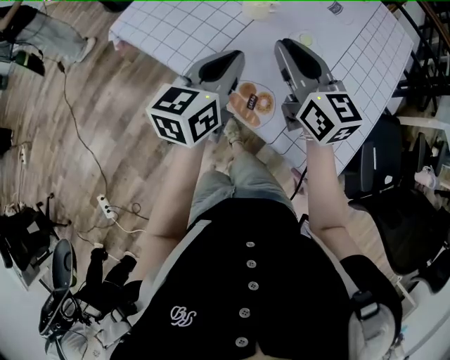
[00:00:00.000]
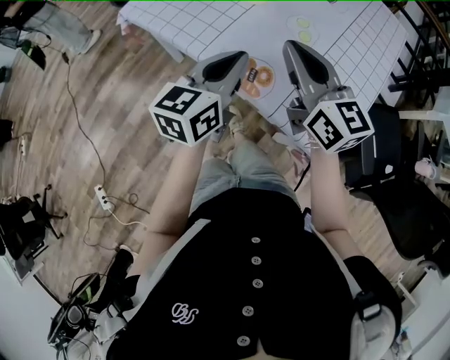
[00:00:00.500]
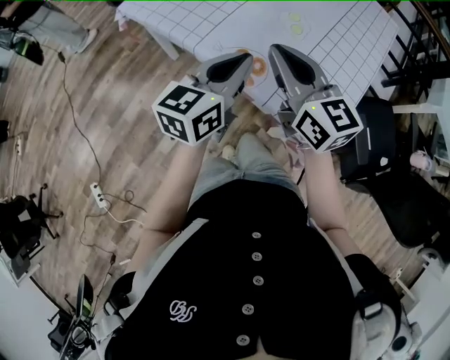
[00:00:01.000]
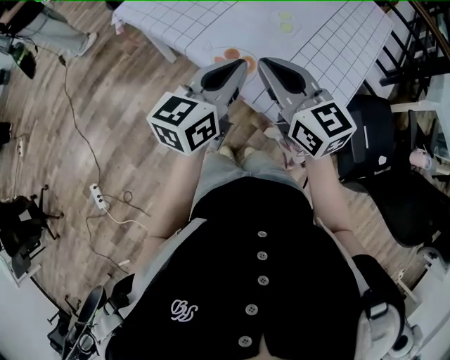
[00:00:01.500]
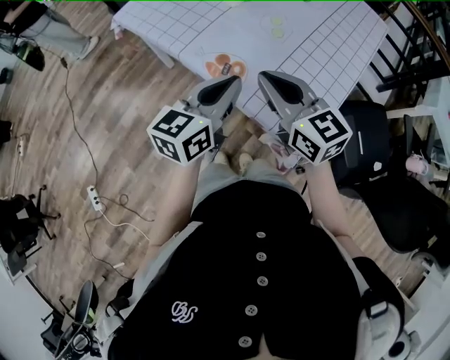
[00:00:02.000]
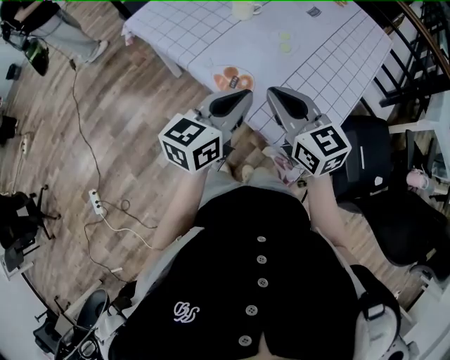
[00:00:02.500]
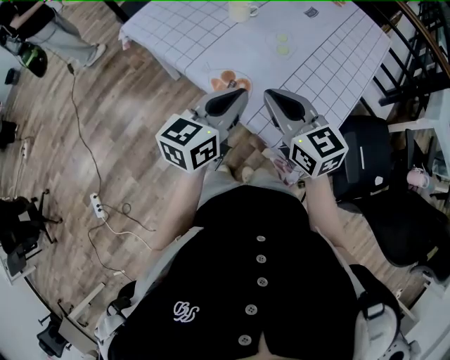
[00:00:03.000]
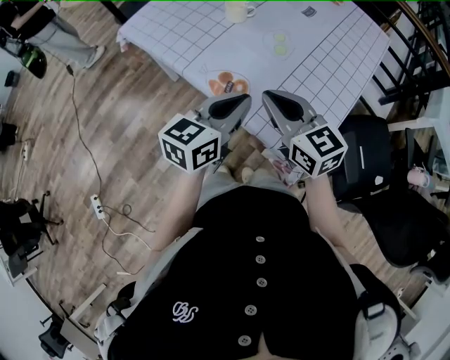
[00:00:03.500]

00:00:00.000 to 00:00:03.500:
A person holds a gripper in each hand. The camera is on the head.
00:00:00.000 to 00:00:02.000: The right gripper travels backward by about 20 cm. The left gripper is displaced backward and to the right by approximately 20 cm.
00:00:02.000 to 00:00:03.500: There are only small adjustments of the grippers.

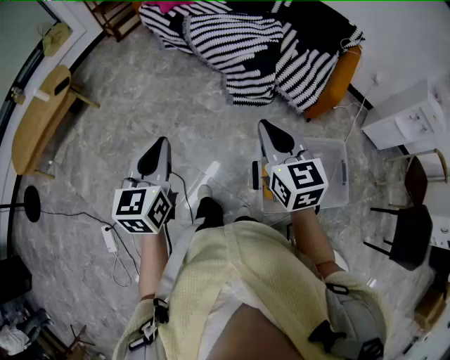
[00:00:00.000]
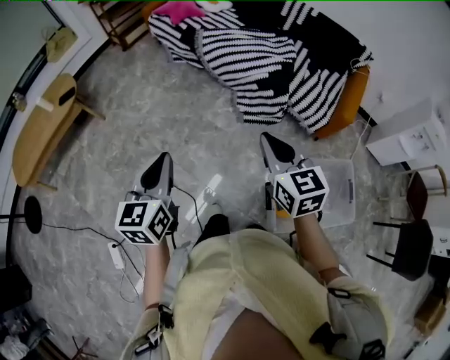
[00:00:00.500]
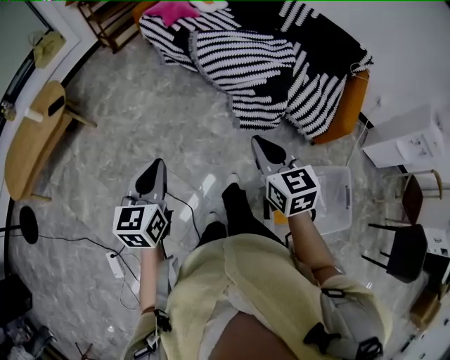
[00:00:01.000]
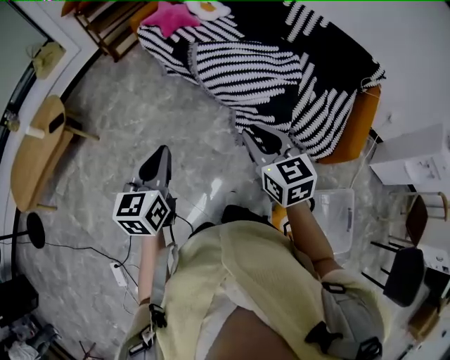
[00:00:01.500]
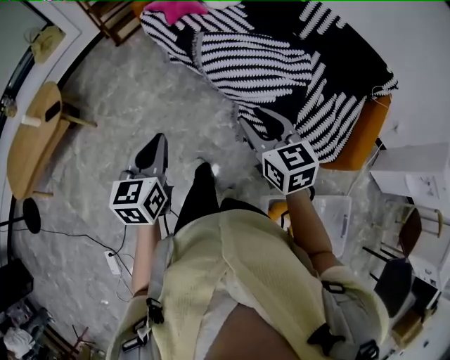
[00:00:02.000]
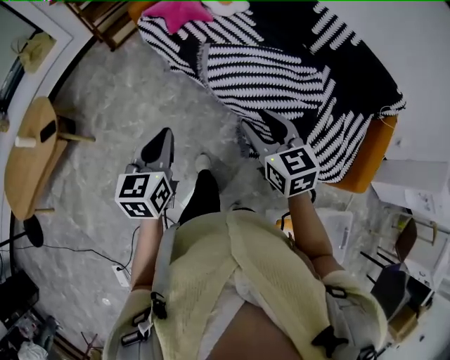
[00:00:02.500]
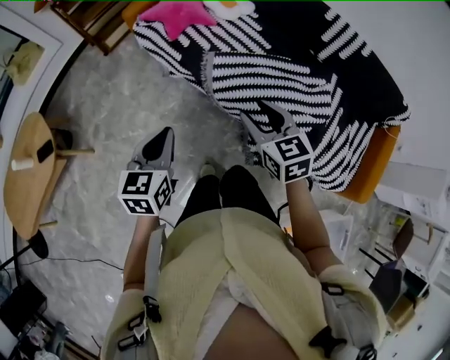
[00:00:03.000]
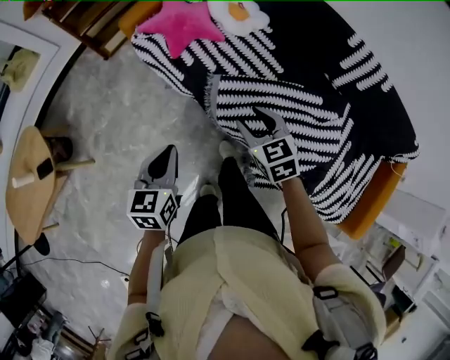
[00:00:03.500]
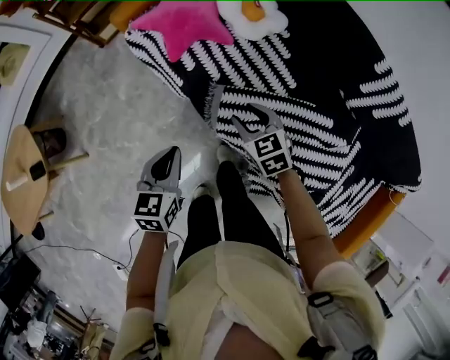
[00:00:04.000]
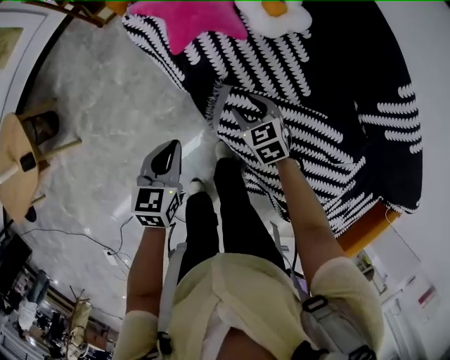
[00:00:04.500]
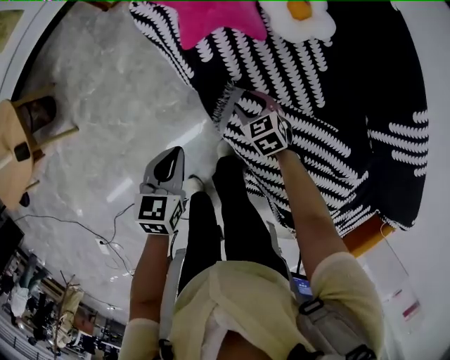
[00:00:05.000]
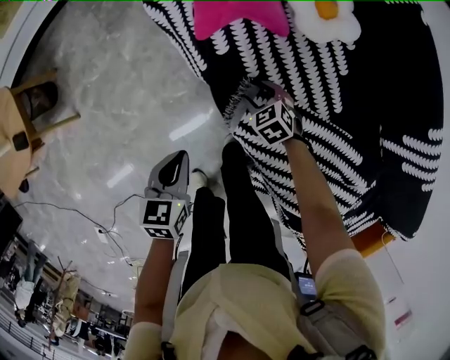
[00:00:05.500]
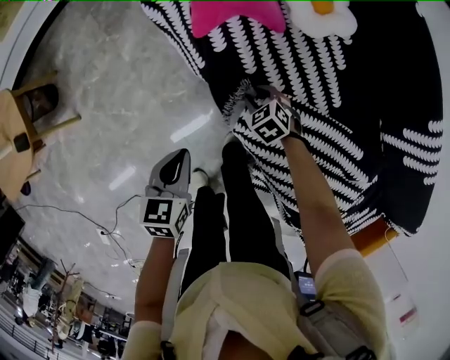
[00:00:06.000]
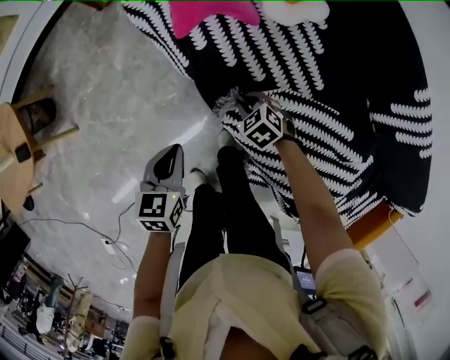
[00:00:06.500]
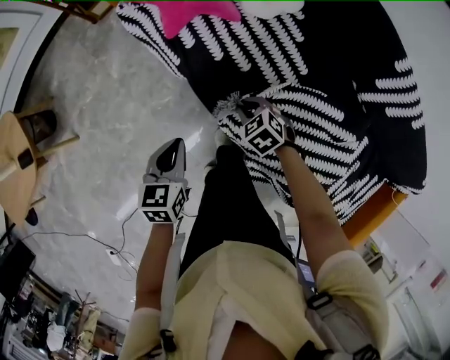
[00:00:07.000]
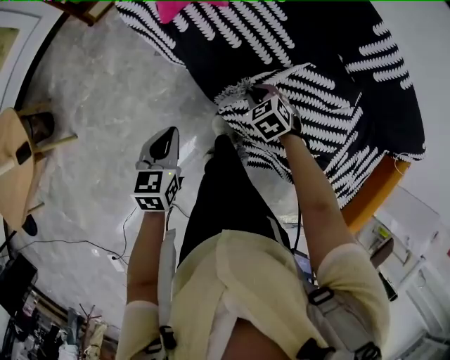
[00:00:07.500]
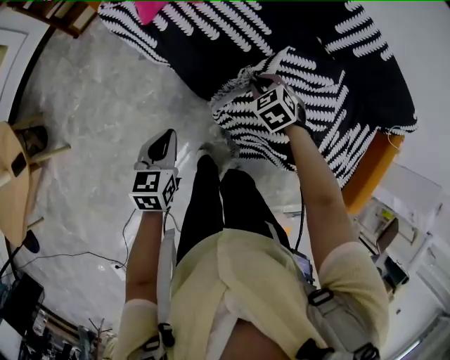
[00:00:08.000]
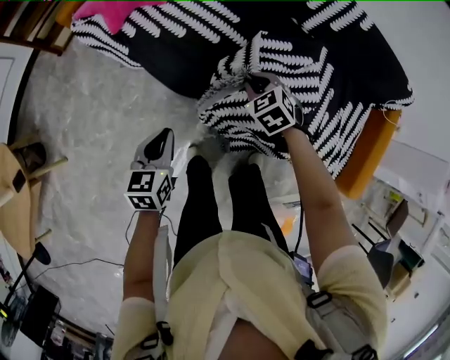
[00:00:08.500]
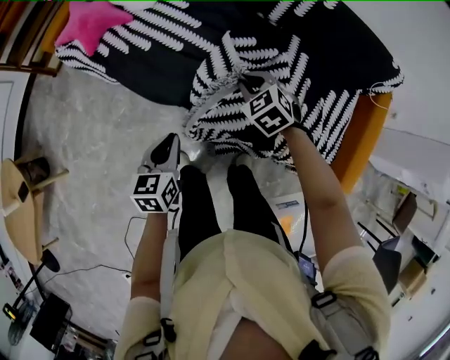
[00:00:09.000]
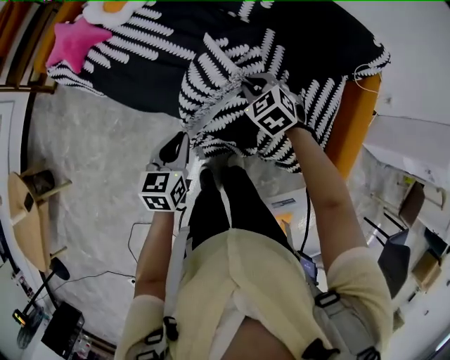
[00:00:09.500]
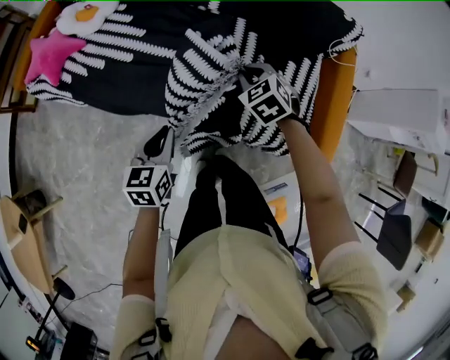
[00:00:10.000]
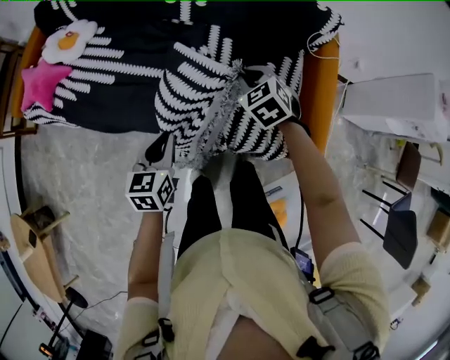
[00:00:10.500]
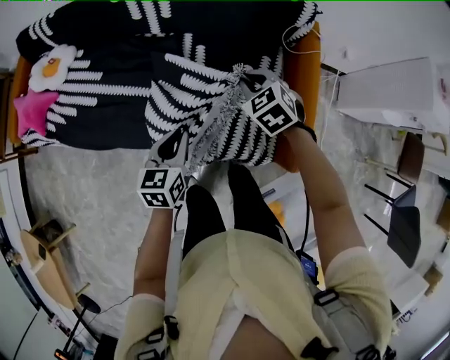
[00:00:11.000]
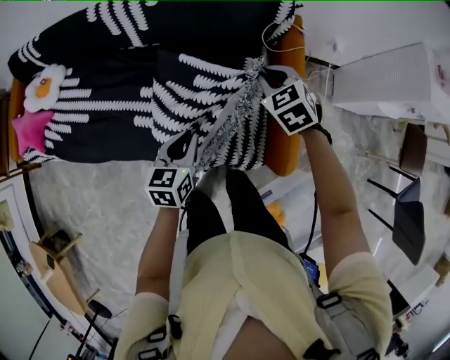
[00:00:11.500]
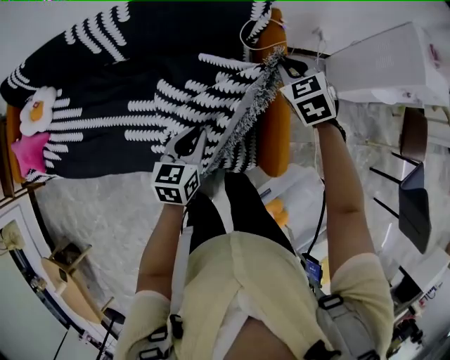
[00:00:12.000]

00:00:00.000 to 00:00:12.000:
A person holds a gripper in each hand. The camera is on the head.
00:00:00.000 to 00:00:02.000: Both grippers travel together forward, approximately 40 cm. The right gripper opens up.
00:00:02.000 to 00:00:04.000: Both grippers are carried forward, some 50 cm. The right gripper goes some 25 cm downward, and changes its angle by about 30 degrees.
00:00:04.000 to 00:00:06.000: The left gripper travels downward by roughly 15 cm. The right gripper heads downward, covering some 25 cm, and rotates some 30 degrees.
00:00:06.000 to 00:00:08.000: The right gripper changes place by some 30 cm, swivels some 20 degrees, and closes, while the left gripper moves approximately 20 cm, and rotates approximately 20 degrees.
00:00:08.000 to 00:00:10.000: The grippers both shift to the right by roughly 35 cm. The left gripper turns by roughly 20 degrees. The right gripper swivels some 20 degrees.
00:00:10.000 to 00:00:12.000: Both grippers are carried to the right, about 50 cm. The left gripper swivels some 20 degrees. The right gripper swivels approximately 30 degrees.

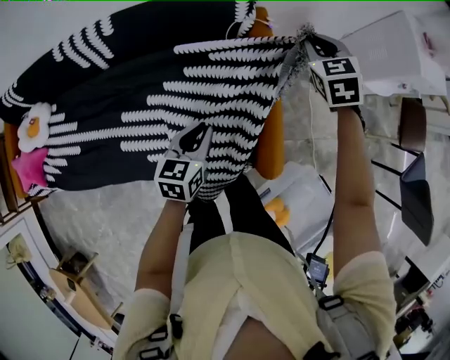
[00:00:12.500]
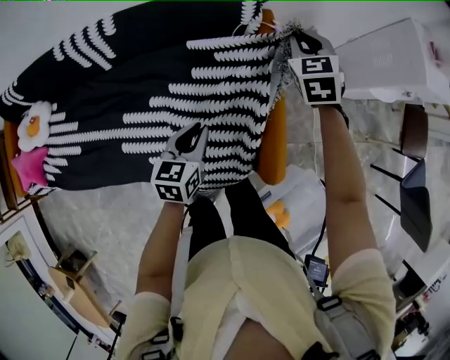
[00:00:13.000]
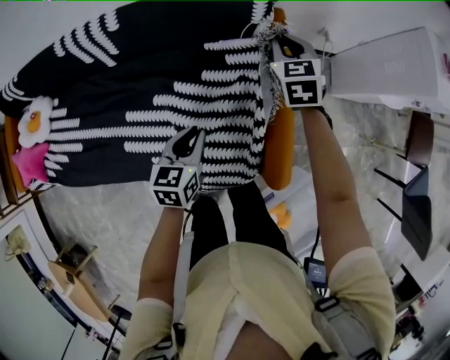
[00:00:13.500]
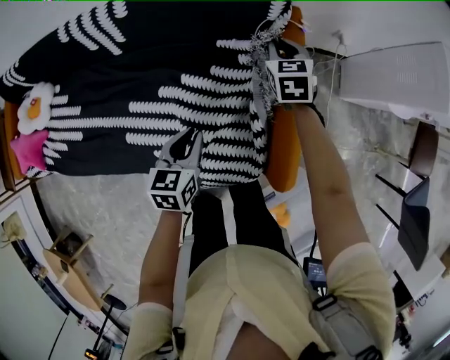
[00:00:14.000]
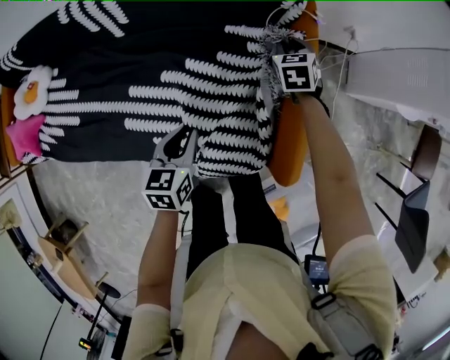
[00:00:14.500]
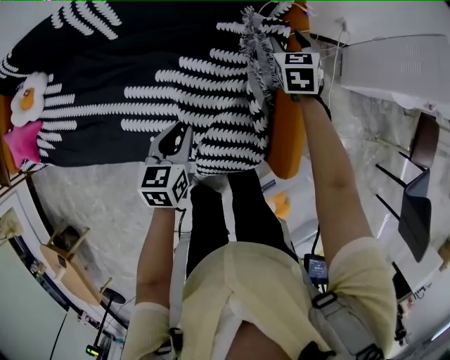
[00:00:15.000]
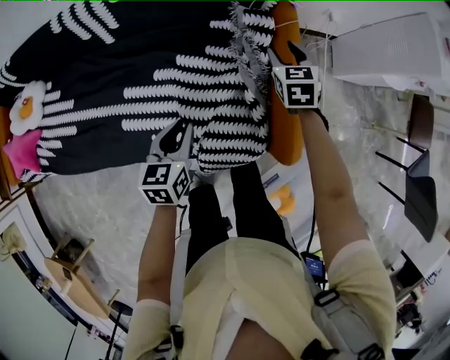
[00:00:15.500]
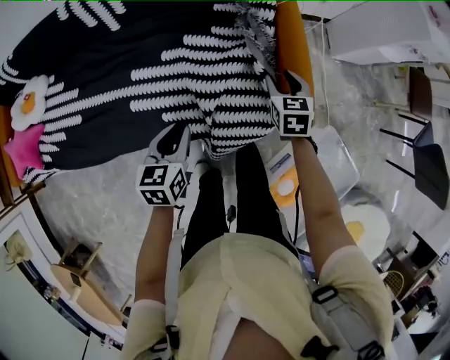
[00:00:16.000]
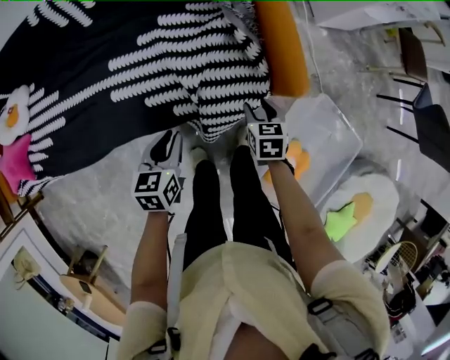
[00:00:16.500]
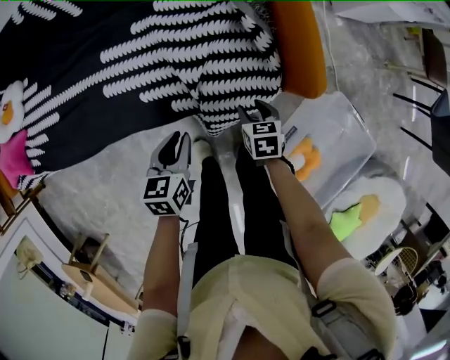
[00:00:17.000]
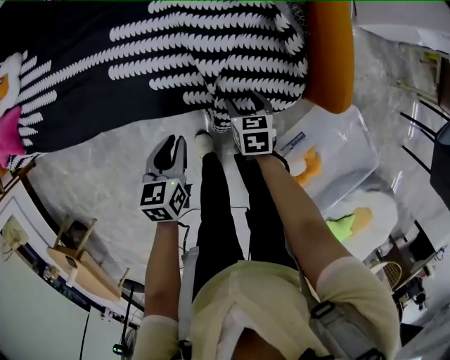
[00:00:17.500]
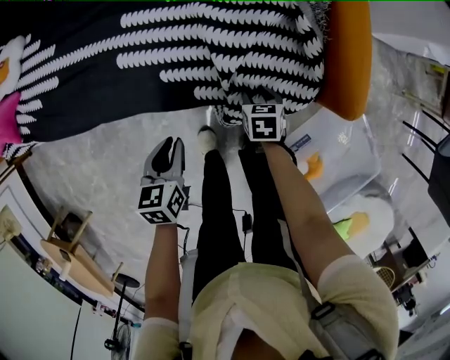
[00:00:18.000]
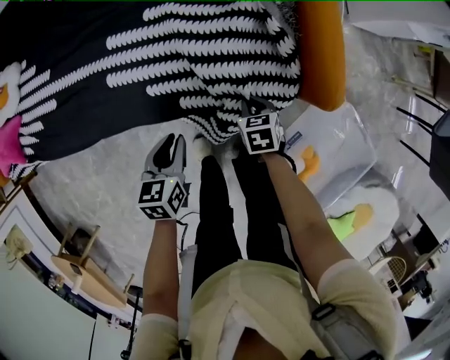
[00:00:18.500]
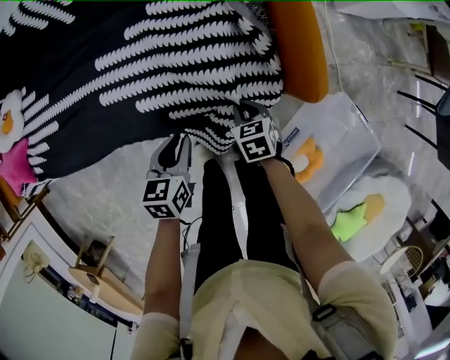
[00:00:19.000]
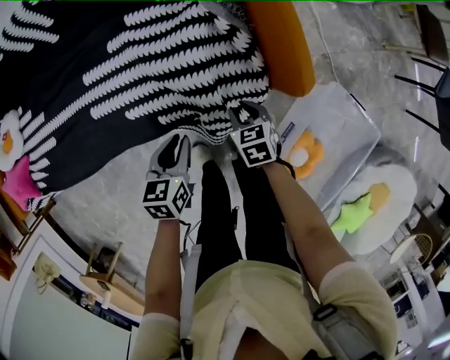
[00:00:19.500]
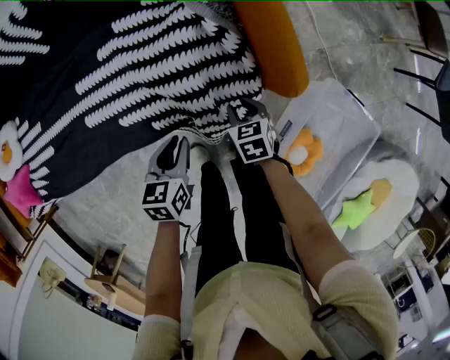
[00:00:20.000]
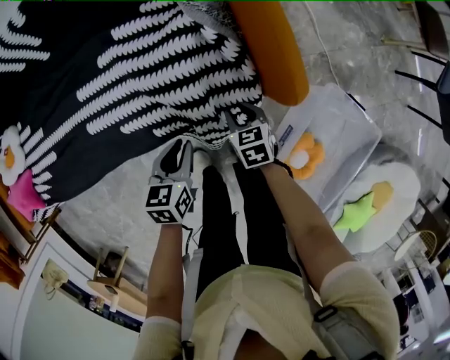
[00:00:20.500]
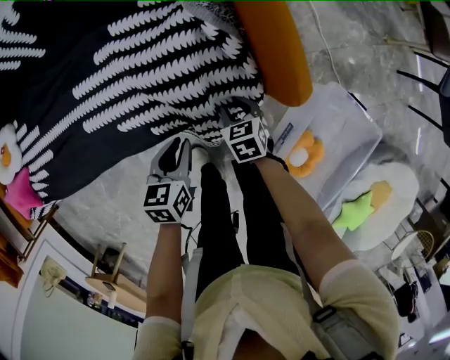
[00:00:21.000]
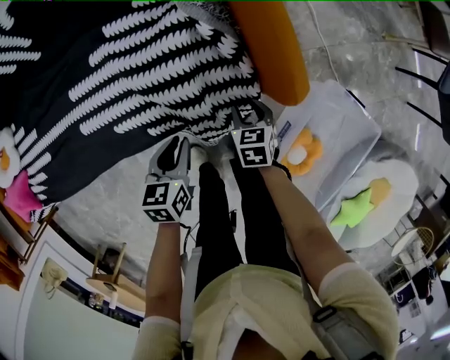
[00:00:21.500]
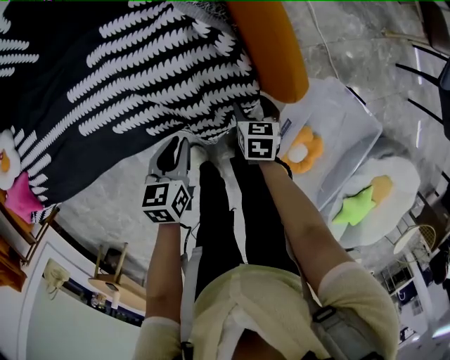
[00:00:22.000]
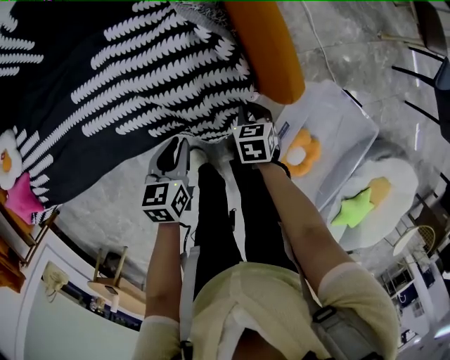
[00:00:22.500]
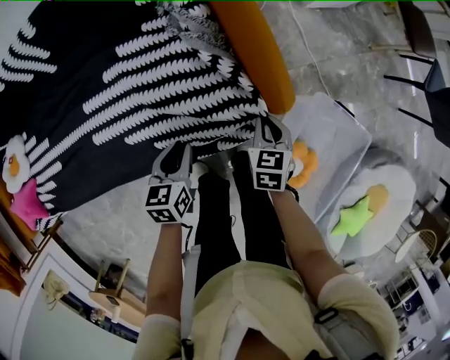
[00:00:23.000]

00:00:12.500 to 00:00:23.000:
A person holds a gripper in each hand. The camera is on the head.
00:00:12.500 to 00:00:14.500: The right gripper shifts about 25 cm downward and to the left. Meanwhile the left gripper goes about 10 cm to the left and downward.
00:00:14.500 to 00:00:16.500: The right gripper goes approximately 50 cm backward, changes its angle by some 30 degrees, and opens. Meanwhile the left gripper heads backward, covering some 25 cm.
00:00:16.500 to 00:00:19.000: The left gripper travels downward by some 10 cm; the right gripper heads downward and to the left, covering approximately 10 cm, and closes up.
00:00:19.000 to 00:00:21.000: The right gripper ends up approximately 5 cm from where it was, and opens, while the left gripper shifts roughly 5 cm to the right.
00:00:21.000 to 00:00:23.000: The left gripper heads upward, covering roughly 5 cm. Meanwhile the right gripper goes about 15 cm upward and to the right, turns by about 20 degrees, and closes its fingers.
